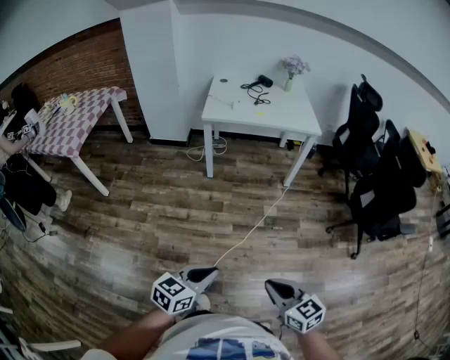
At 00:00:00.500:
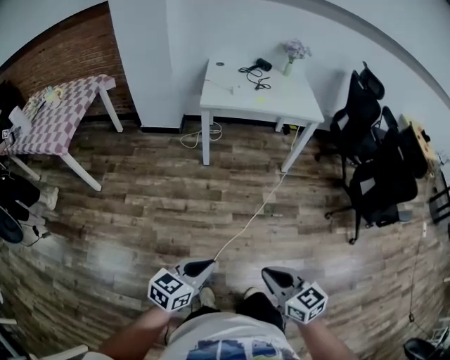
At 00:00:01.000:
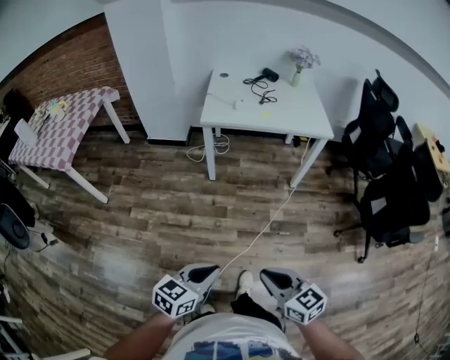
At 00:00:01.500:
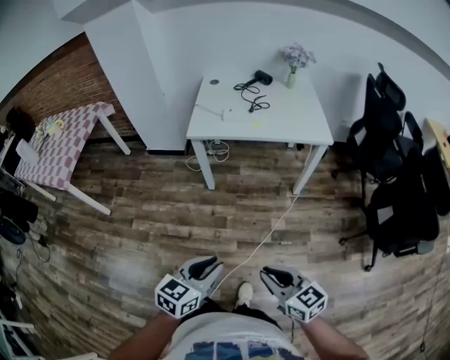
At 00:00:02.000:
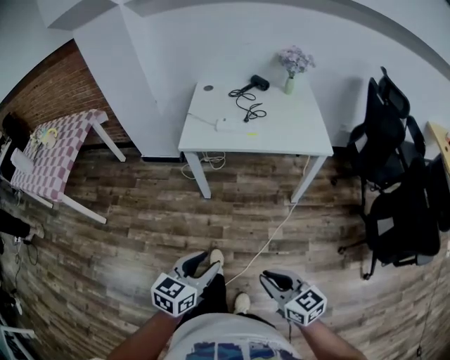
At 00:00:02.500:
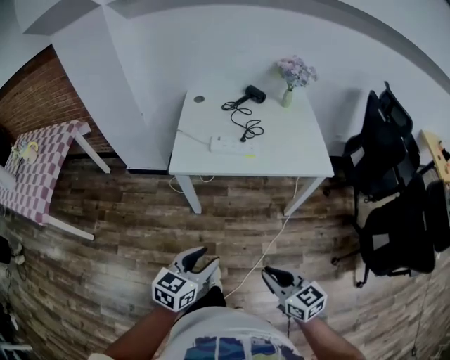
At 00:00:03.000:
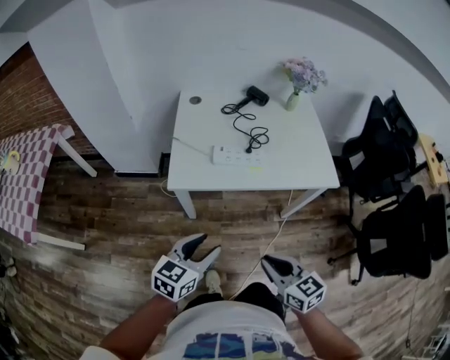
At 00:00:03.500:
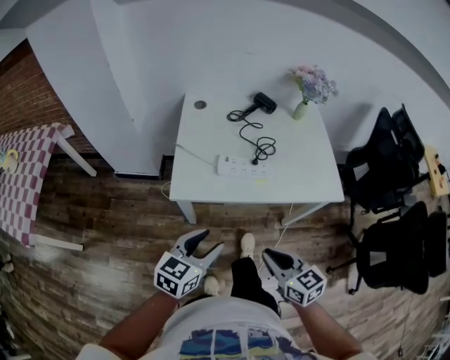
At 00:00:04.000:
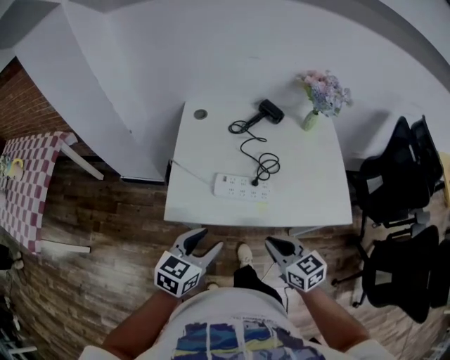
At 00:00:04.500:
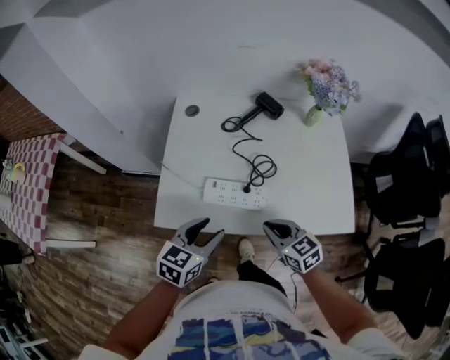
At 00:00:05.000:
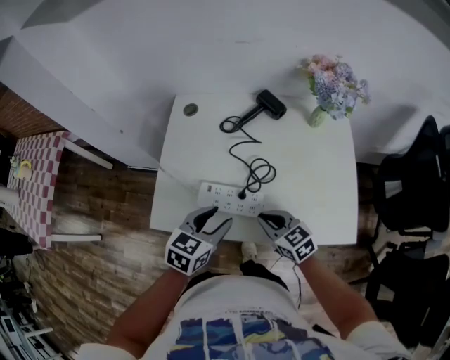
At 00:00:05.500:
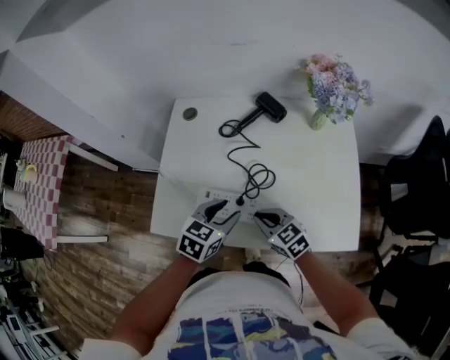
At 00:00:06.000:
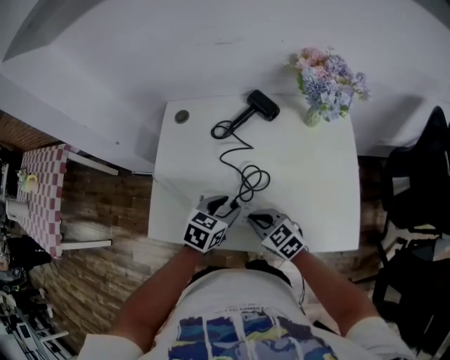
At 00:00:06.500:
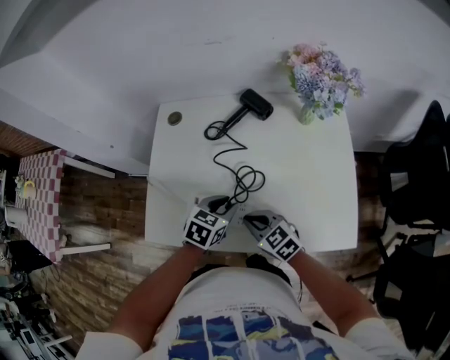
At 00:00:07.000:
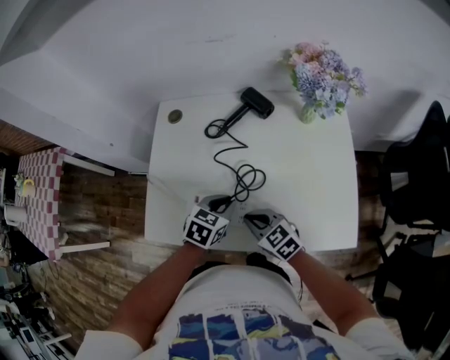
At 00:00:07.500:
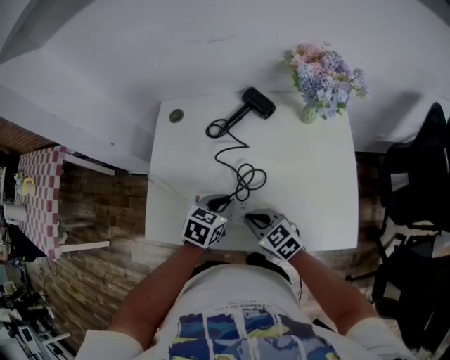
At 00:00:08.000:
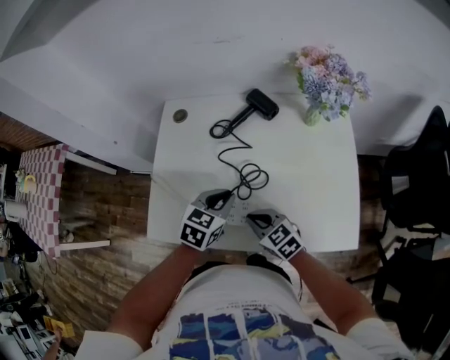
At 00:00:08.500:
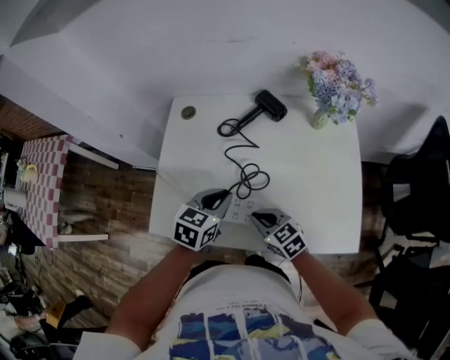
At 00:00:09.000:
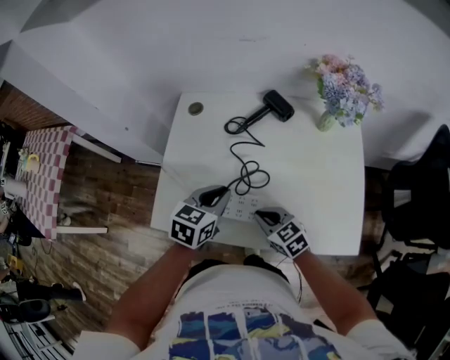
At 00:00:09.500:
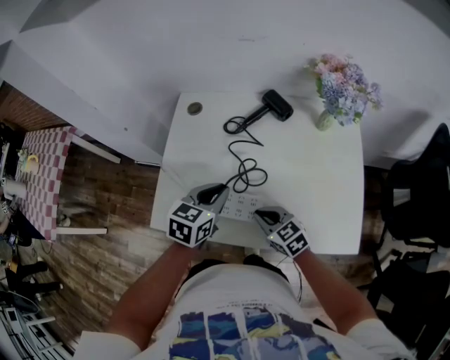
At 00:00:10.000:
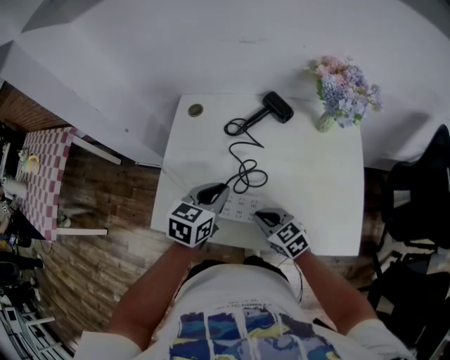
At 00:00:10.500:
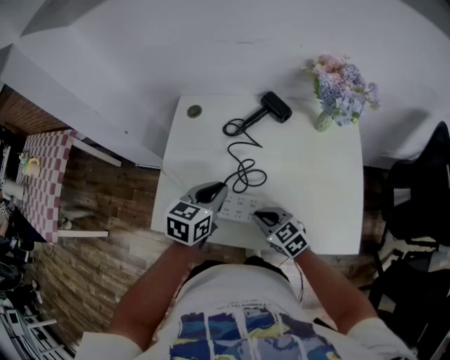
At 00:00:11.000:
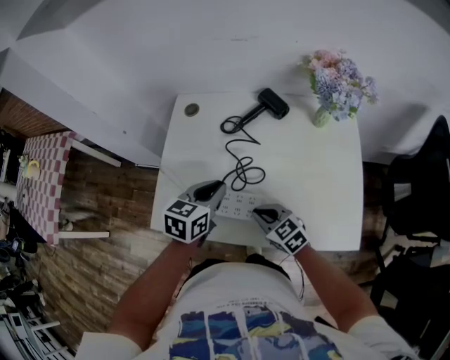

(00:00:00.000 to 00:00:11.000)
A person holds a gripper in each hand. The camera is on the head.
00:00:00.000 - 00:00:02.000: Both grippers travel together forward, roughly 40 cm. The left gripper opens its fingers.
00:00:02.000 - 00:00:03.500: The two grippers go about 35 cm forward.
00:00:03.500 - 00:00:05.500: The left gripper is displaced forward and to the right by some 35 cm. Meanwhile the right gripper travels forward by roughly 35 cm, and swivels roughly 20 degrees.
00:00:05.500 - 00:00:07.500: The left gripper is displaced downward by approximately 5 cm, and closes.
00:00:07.500 - 00:00:09.000: The left gripper is displaced upward and to the left by some 10 cm.
00:00:09.000 - 00:00:11.000: The grippers stay close to where they were, moving slightly.

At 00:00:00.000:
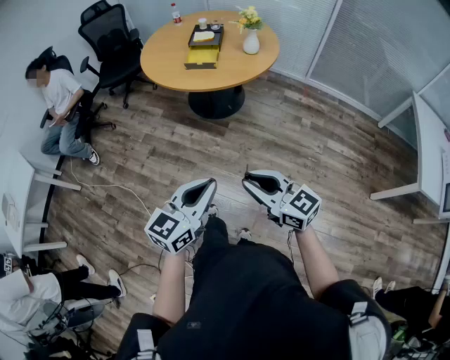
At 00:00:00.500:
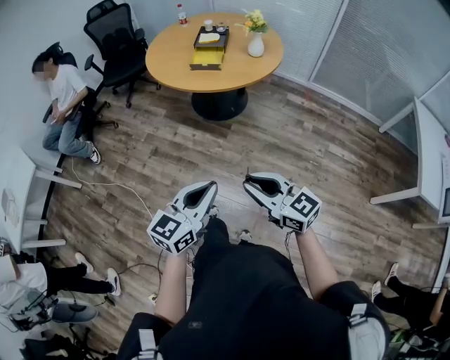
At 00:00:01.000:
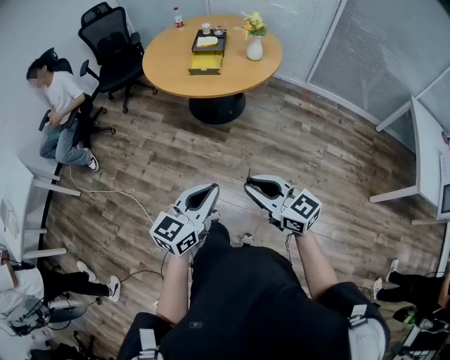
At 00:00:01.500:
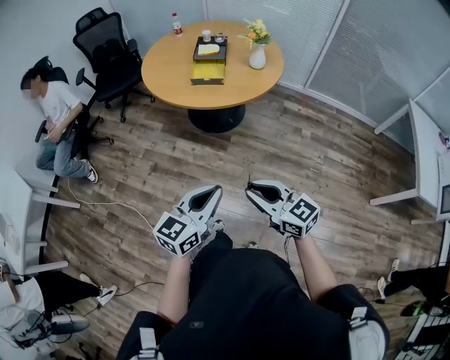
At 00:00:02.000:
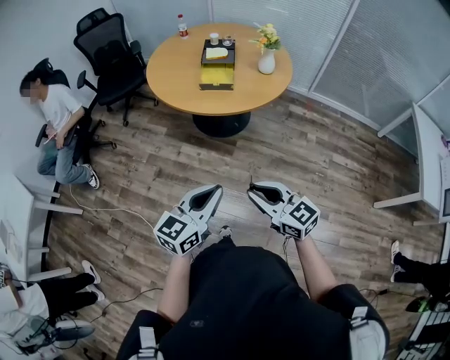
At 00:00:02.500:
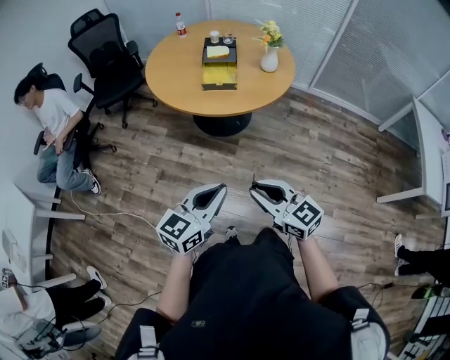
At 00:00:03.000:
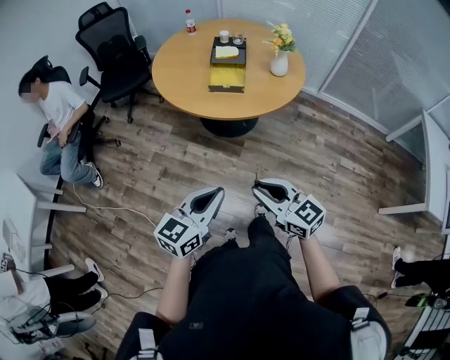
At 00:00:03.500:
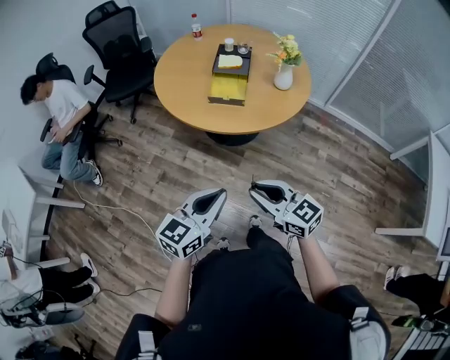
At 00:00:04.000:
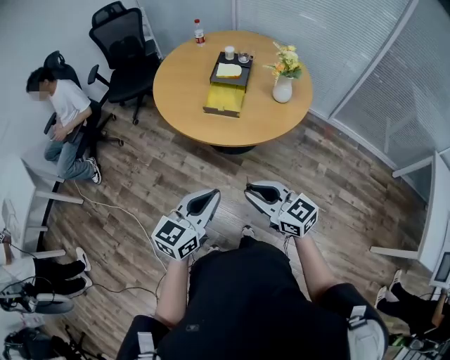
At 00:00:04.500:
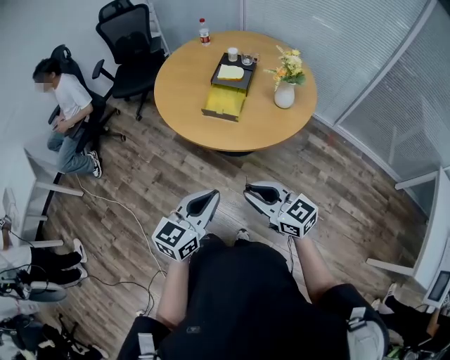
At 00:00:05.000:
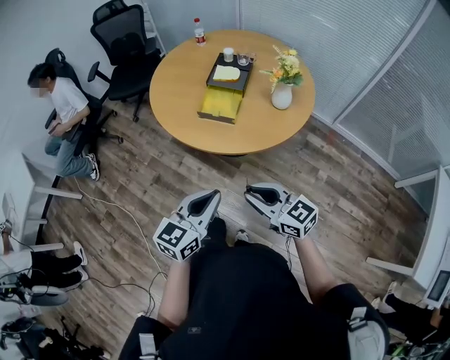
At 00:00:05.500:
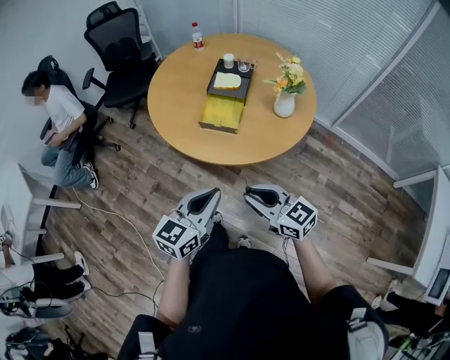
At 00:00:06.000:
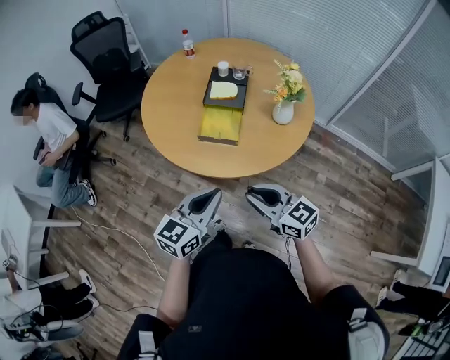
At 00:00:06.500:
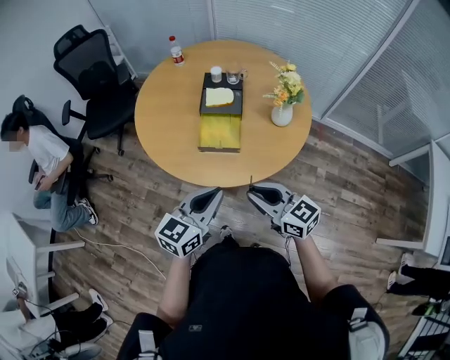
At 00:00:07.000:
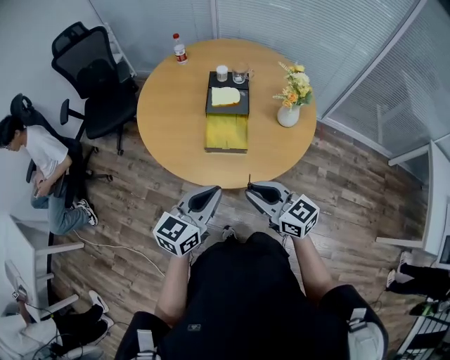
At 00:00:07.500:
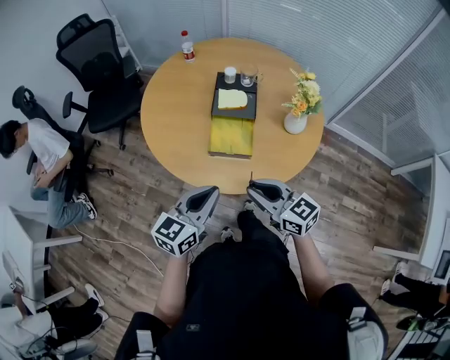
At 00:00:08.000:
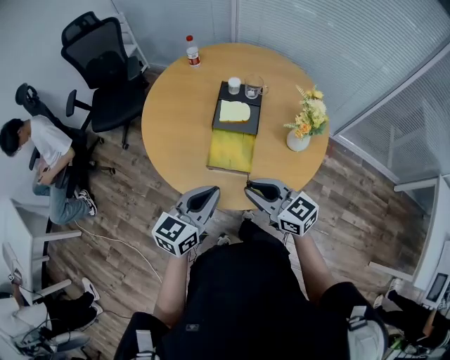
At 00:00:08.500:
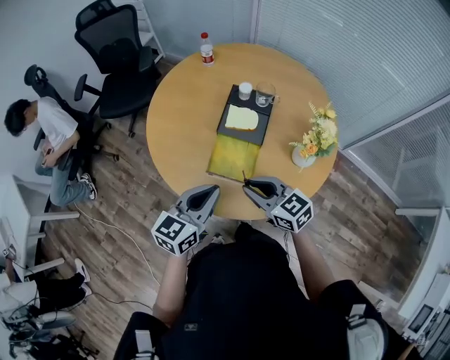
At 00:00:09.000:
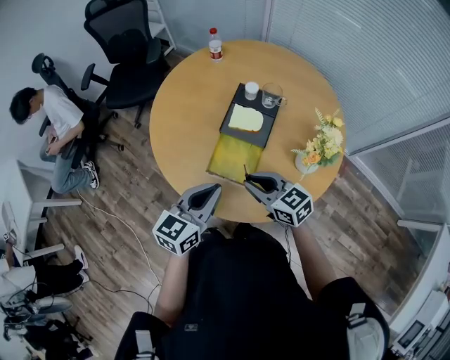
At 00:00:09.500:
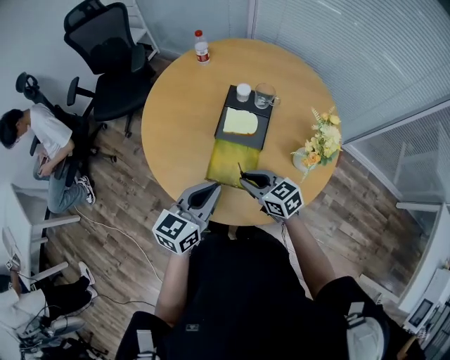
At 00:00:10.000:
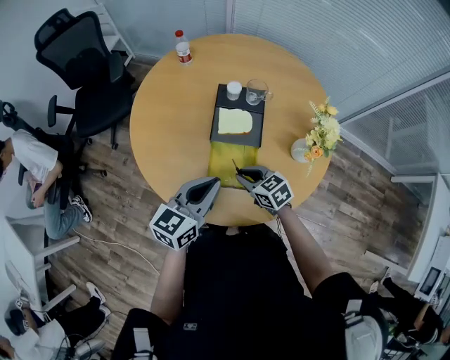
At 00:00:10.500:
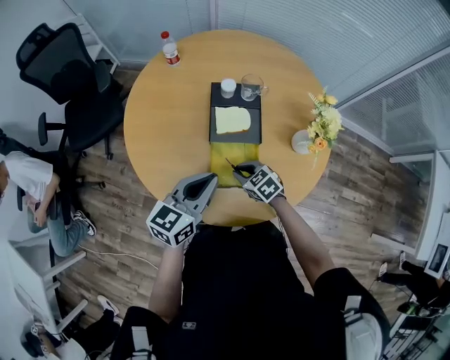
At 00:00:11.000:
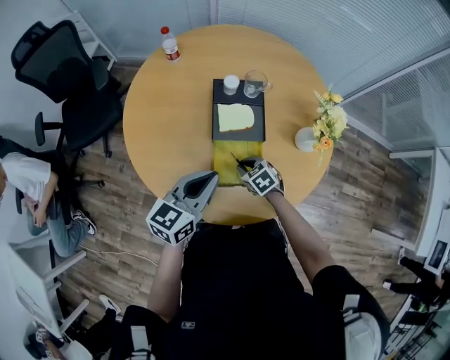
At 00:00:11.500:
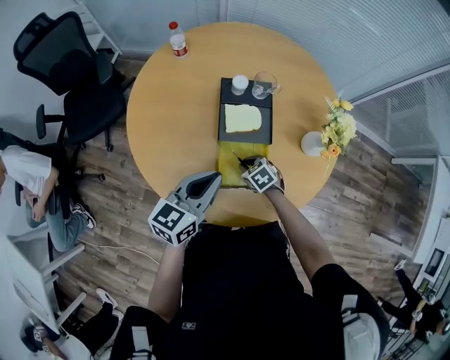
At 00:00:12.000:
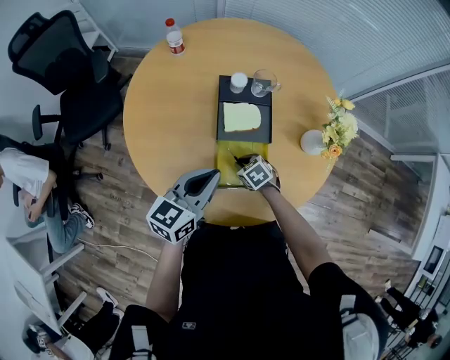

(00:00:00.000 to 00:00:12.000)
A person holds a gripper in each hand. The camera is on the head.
00:00:00.000 - 00:00:02.000: Both grippers travel together forward and to the left, some 15 cm.
00:00:02.000 - 00:00:04.000: Both grippers travel together forward and to the right, about 20 cm.
00:00:04.000 - 00:00:06.000: Both grippers travel together forward, roughly 15 cm.
00:00:06.000 - 00:00:08.000: Both grippers move forward, some 20 cm.
00:00:08.000 - 00:00:10.000: The left gripper goes approximately 15 cm forward; the right gripper moves downward and forward, some 20 cm, and changes its angle by roughly 30 degrees.
00:00:10.000 - 00:00:12.000: The left gripper is displaced forward by some 5 cm; the right gripper moves downward, about 15 cm, and changes its angle by some 20 degrees.

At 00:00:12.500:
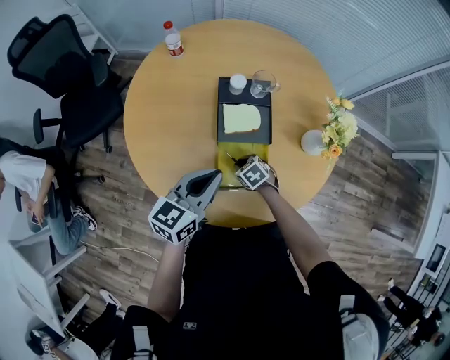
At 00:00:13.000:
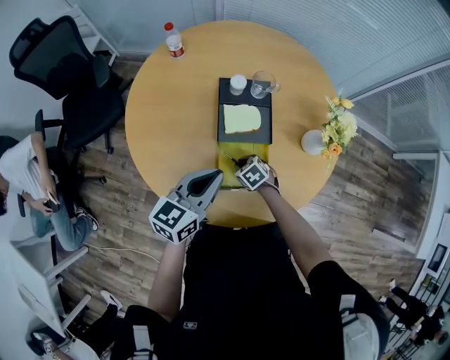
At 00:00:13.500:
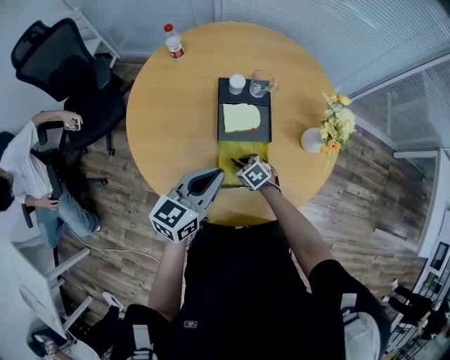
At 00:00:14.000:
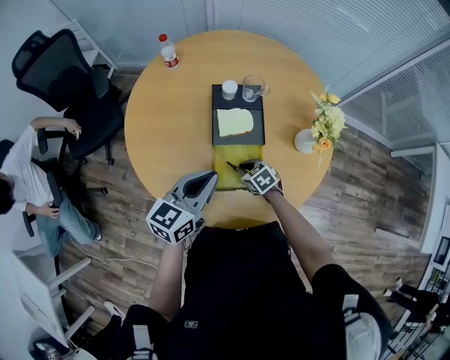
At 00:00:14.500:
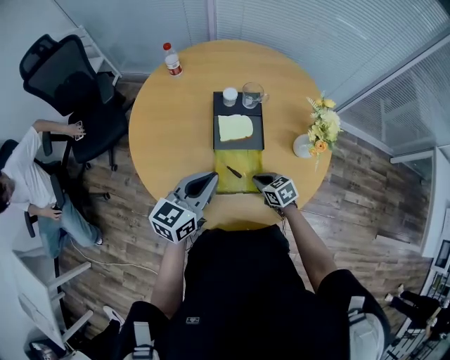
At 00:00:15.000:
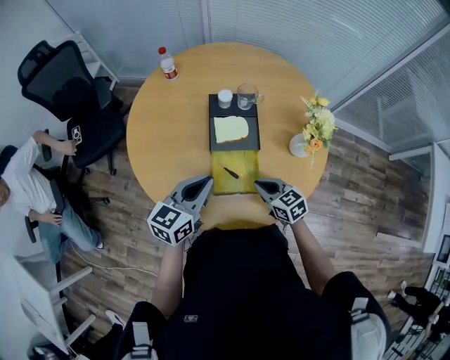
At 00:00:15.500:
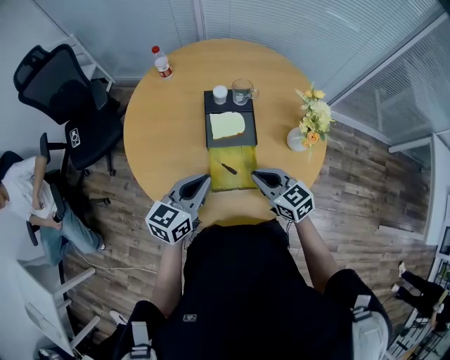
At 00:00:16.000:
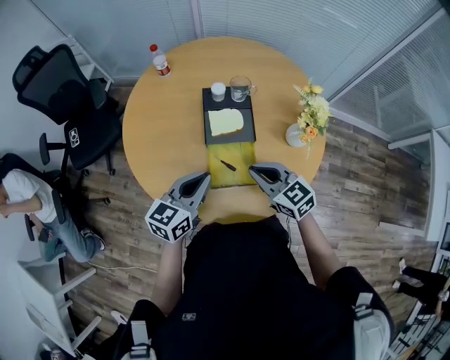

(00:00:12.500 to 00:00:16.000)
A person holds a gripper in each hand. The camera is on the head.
00:00:12.500 - 00:00:14.500: The right gripper shifts about 10 cm to the right, upward and backward.
00:00:14.500 - 00:00:16.000: The right gripper goes about 20 cm upward, and swivels roughly 30 degrees.
